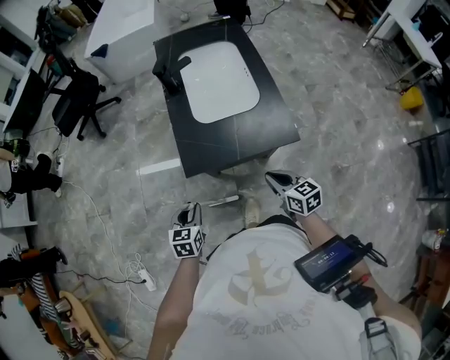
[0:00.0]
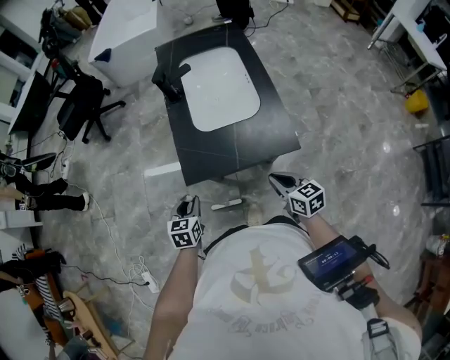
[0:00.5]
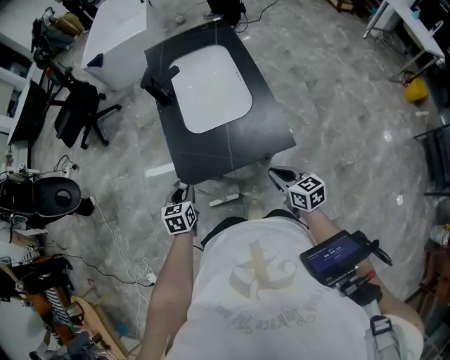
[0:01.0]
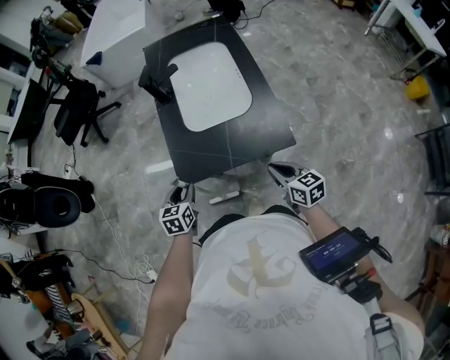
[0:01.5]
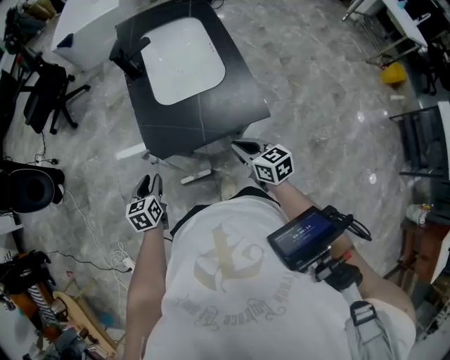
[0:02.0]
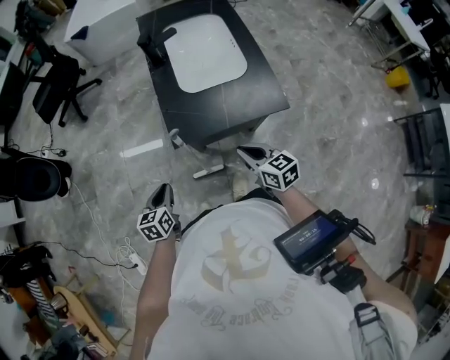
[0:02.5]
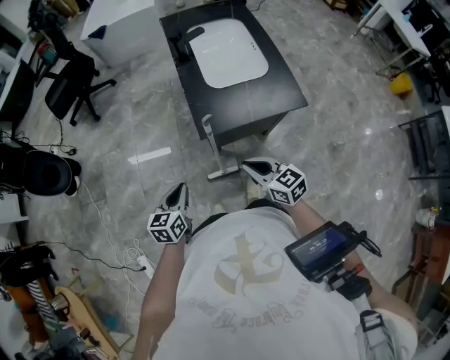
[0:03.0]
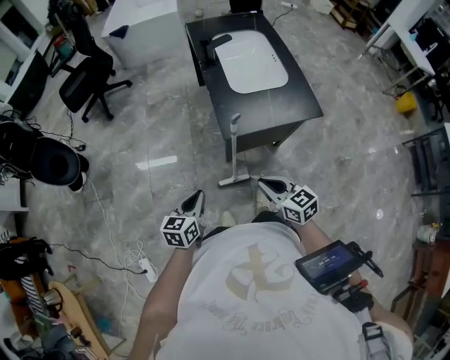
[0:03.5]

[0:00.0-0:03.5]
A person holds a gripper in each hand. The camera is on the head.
0:00.0 to 0:02.0: Both grippers travel together forward, roughly 5 cm.
0:02.0 to 0:03.5: The left gripper moves backward, to the left and upward, roughly 20 cm, rotates roughly 20 degrees, and closes. The right gripper heads to the left and backward, covering about 25 cm.

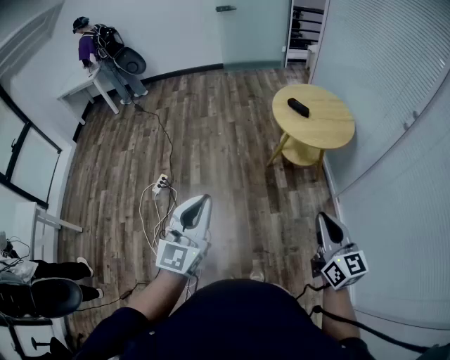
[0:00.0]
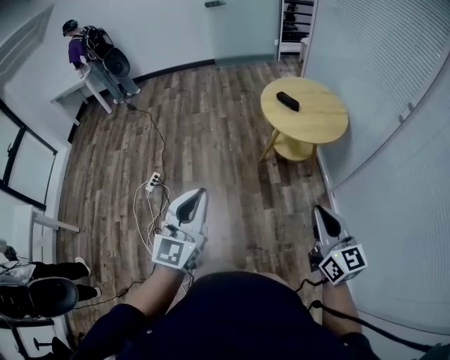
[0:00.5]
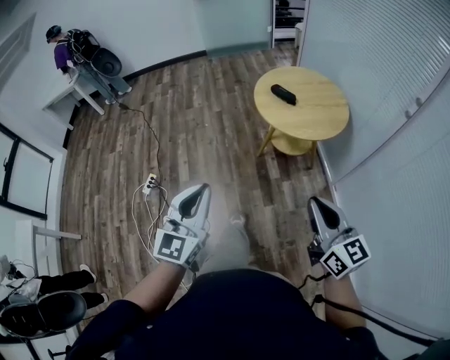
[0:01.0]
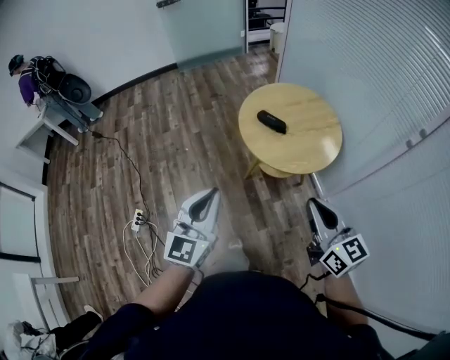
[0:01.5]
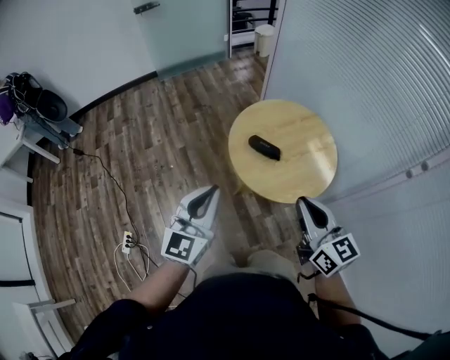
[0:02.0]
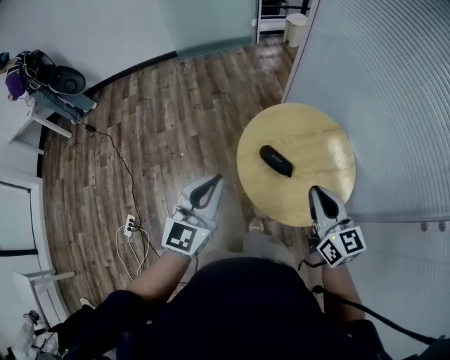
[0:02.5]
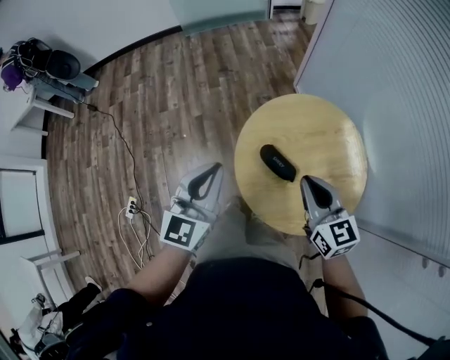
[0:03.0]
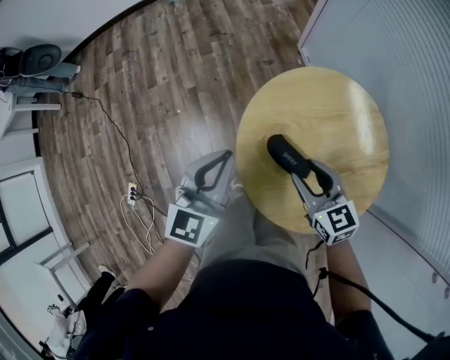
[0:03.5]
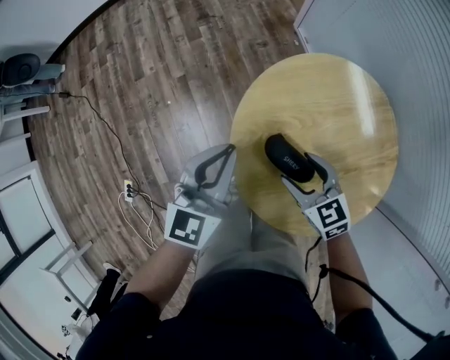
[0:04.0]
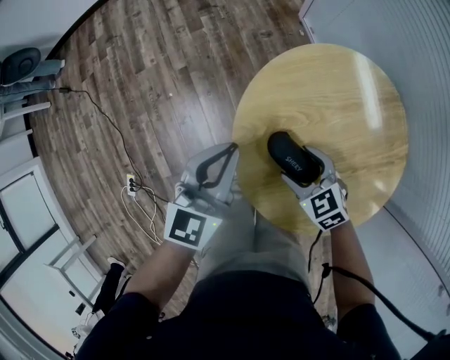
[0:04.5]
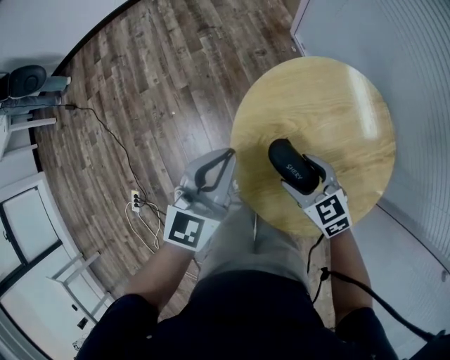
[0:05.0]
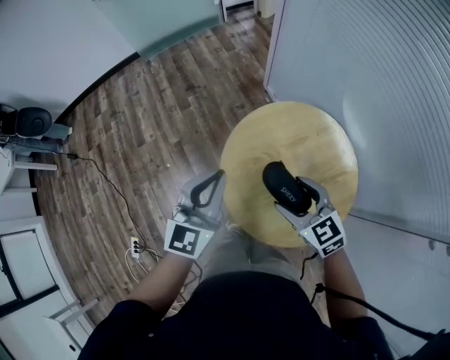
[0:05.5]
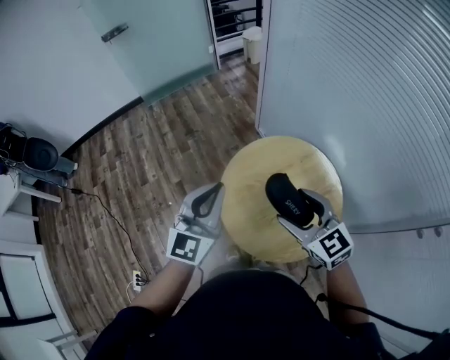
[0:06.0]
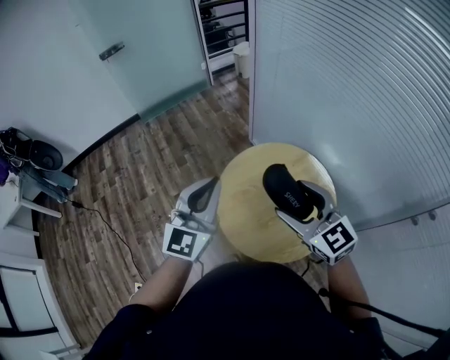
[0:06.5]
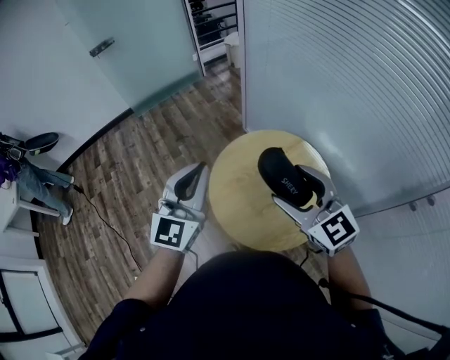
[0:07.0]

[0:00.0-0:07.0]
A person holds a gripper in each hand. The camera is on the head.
0:00.0 to 0:02.0: Both grippers are carried forward, approximately 50 cm. The left gripper changes its angle by approximately 20 degrees.
0:02.0 to 0:03.5: Both grippers move forward and downward, about 40 cm. The right gripper rotates some 30 degrees, and opens.
0:03.5 to 0:05.0: The right gripper goes about 10 cm downward, and opens its fingers.
0:05.0 to 0:07.0: The two grippers go approximately 35 cm upward. The left gripper swivels about 30 degrees; the right gripper changes its angle by approximately 40 degrees.

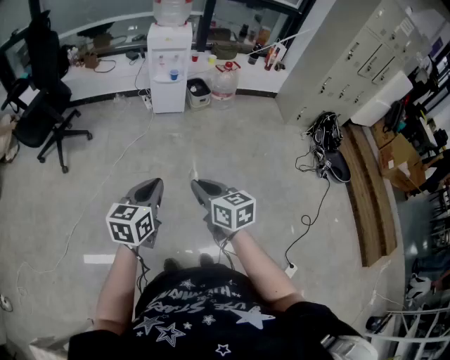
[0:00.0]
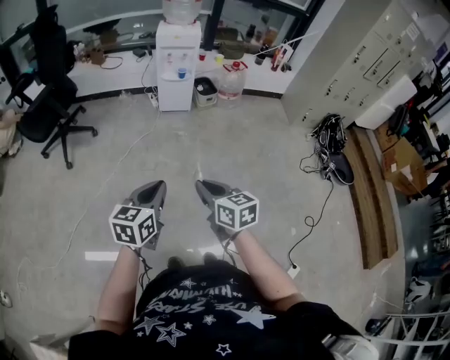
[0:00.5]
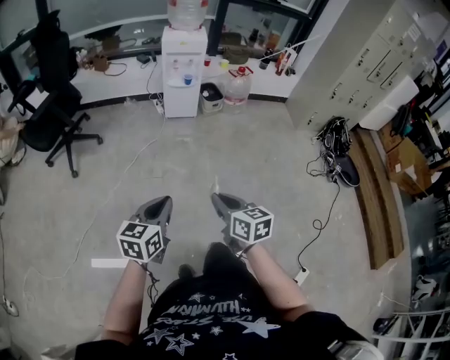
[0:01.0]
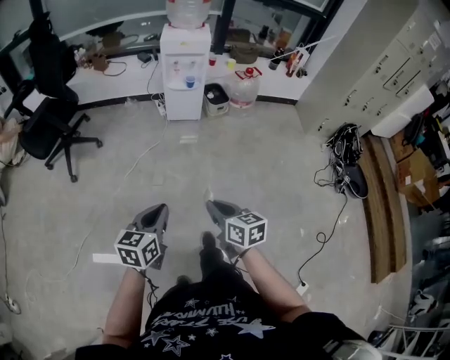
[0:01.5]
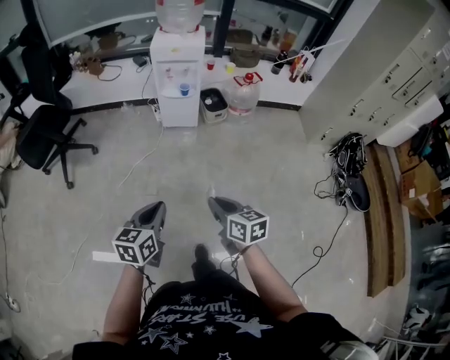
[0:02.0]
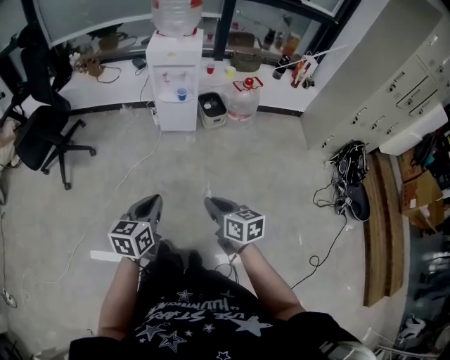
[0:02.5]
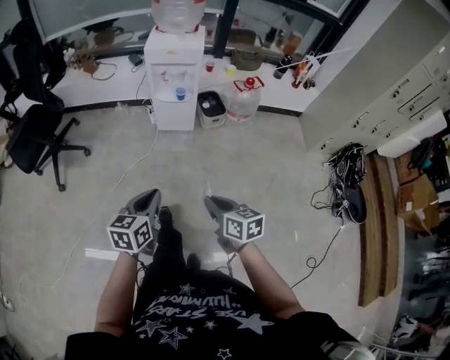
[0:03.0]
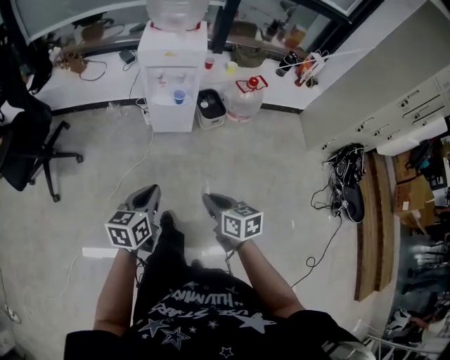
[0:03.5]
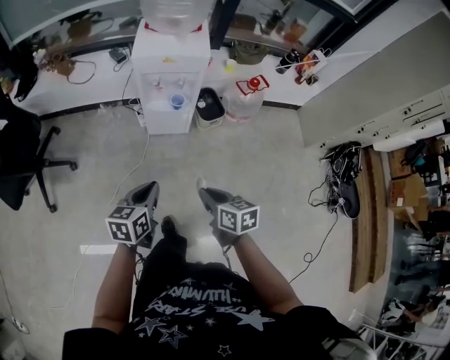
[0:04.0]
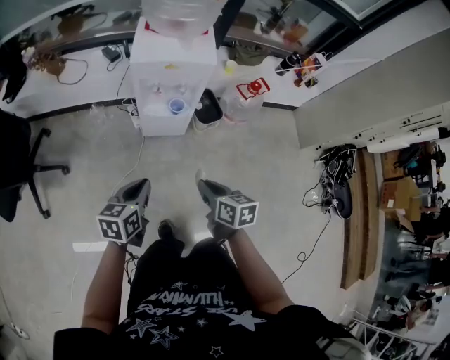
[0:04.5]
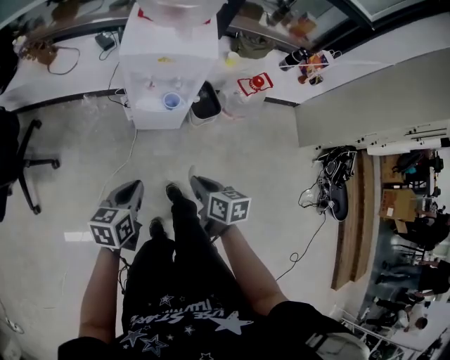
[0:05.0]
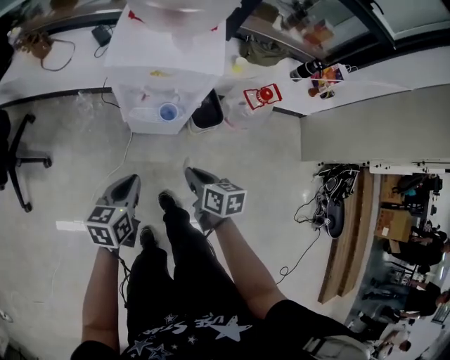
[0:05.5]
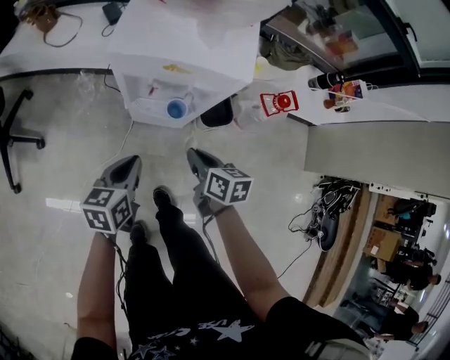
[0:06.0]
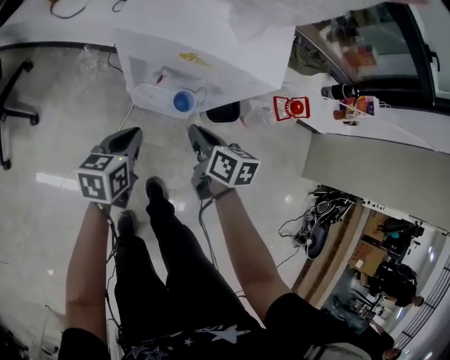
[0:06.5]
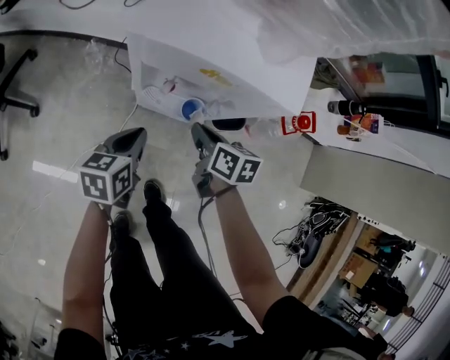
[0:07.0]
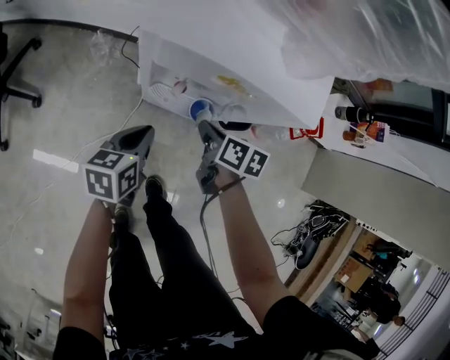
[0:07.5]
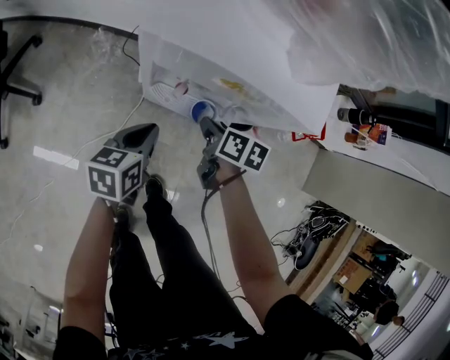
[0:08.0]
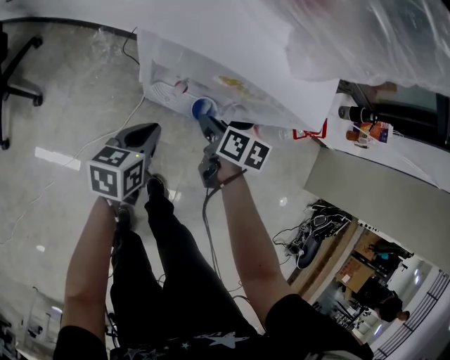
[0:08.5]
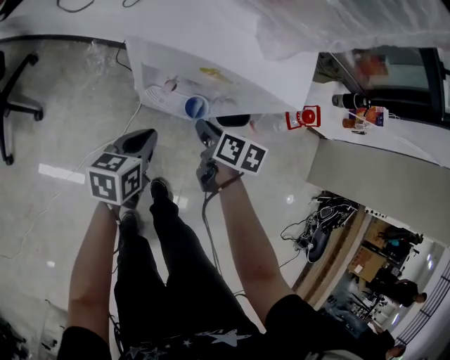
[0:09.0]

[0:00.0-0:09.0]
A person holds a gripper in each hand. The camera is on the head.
0:00.0 to 0:02.0: The grippers both shift forward by some 25 cm.
0:02.0 to 0:04.5: The two grippers travel together, forward, approximately 50 cm.
0:04.5 to 0:07.0: Both grippers travel together forward and downward, roughly 40 cm.
0:07.0 to 0:09.0: The right gripper opens up.

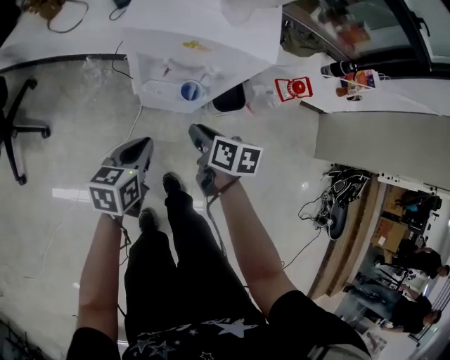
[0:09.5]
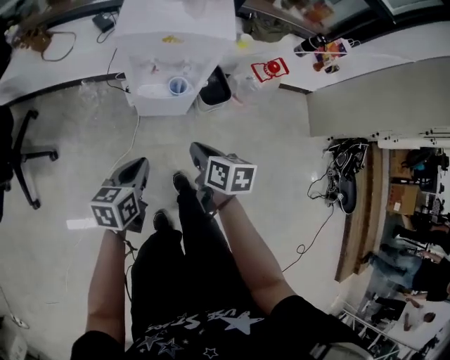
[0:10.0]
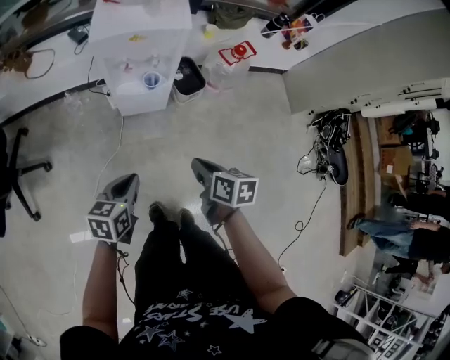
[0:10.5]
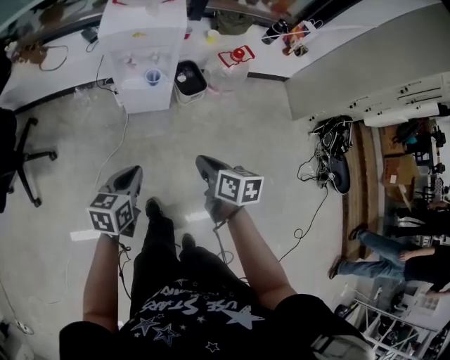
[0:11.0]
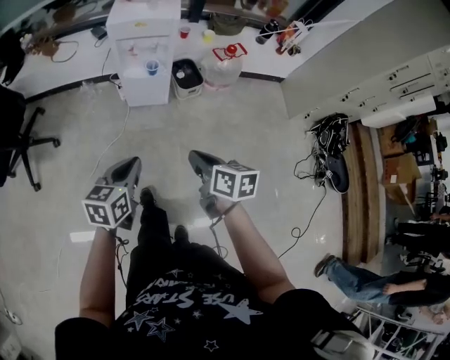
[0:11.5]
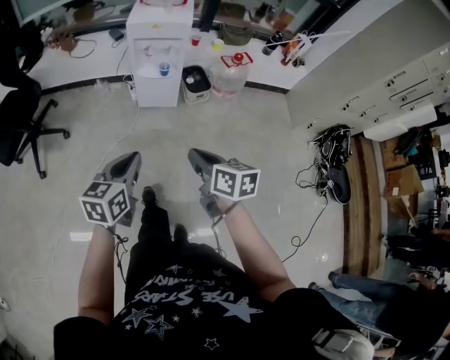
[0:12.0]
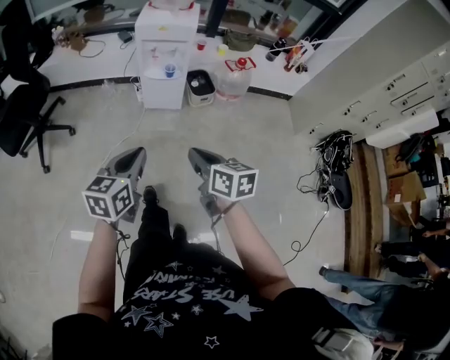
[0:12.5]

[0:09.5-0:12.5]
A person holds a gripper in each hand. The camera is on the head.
0:09.5 to 0:11.0: The two grippers go about 35 cm backward and upward.
0:11.0 to 0:12.5: The two grippers go some 25 cm backward and upward. The right gripper swivels approximately 20 degrees.

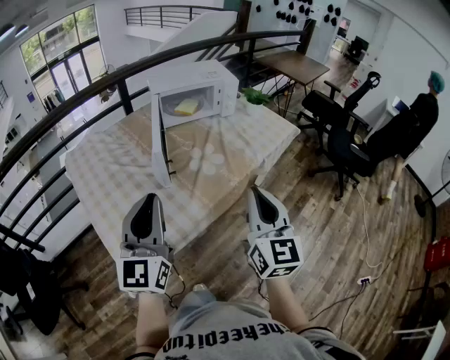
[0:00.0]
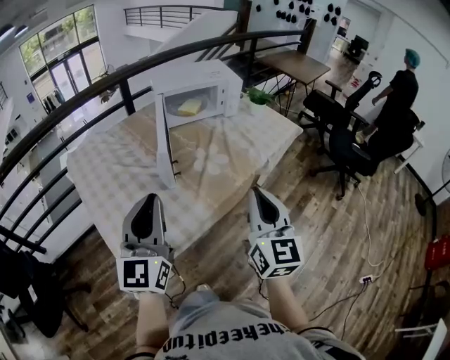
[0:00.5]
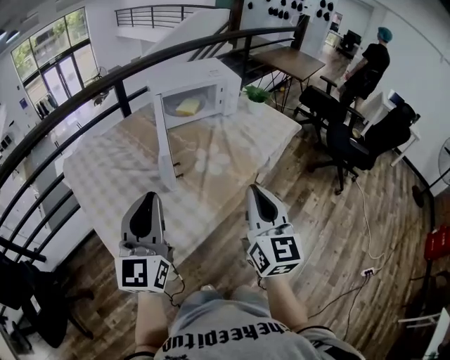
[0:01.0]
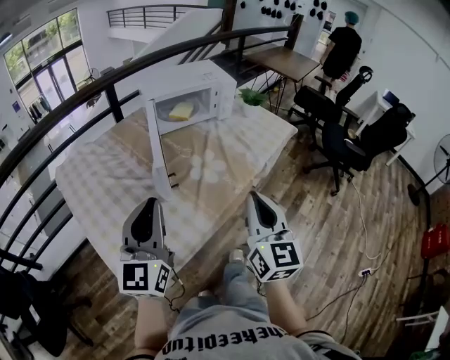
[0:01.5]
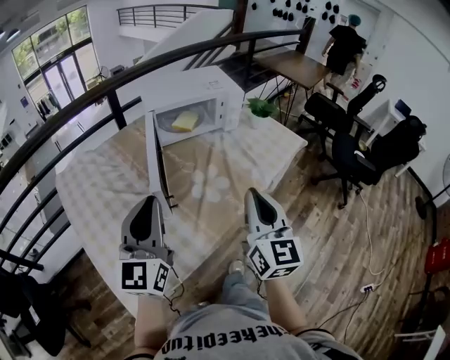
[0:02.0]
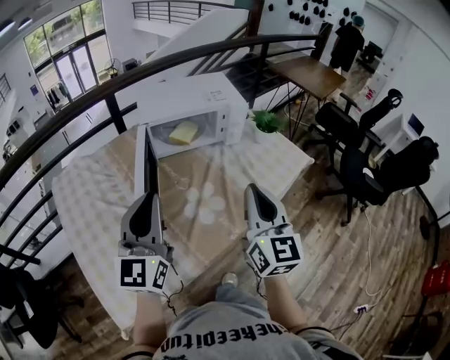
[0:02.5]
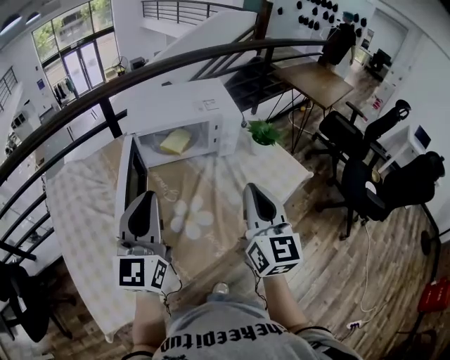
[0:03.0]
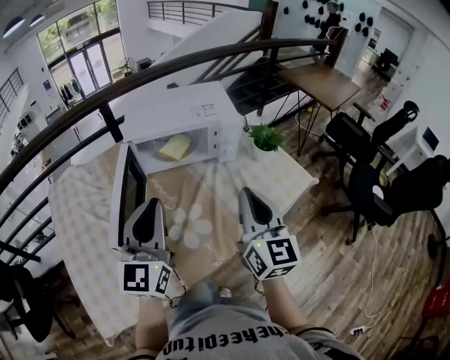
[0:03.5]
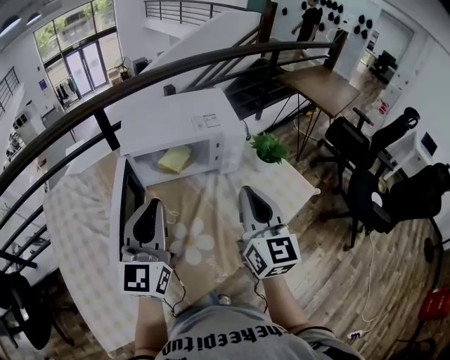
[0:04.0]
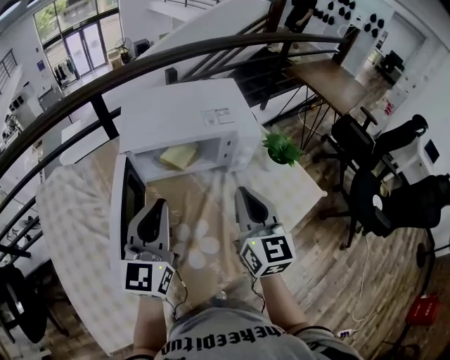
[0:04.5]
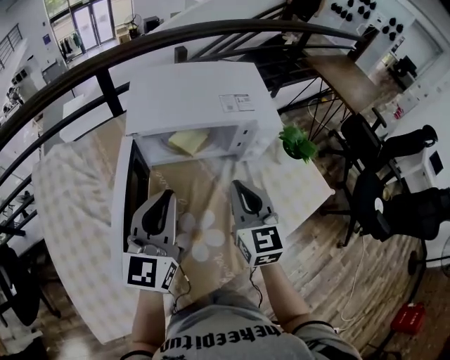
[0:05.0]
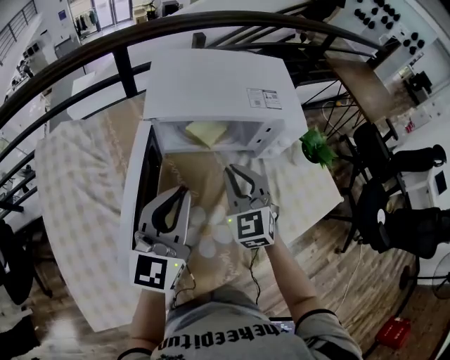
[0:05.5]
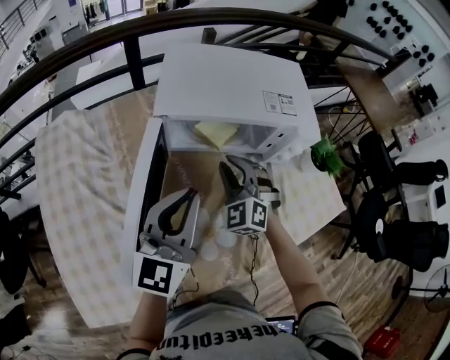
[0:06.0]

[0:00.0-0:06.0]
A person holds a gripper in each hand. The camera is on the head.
0:00.0 to 0:02.0: Both grippers travel together forward, roughly 15 cm.
0:02.0 to 0:04.0: The left gripper goes about 25 cm forward and to the right. Meanwhile the right gripper is displaced forward by some 25 cm.
0:04.0 to 0:06.0: The left gripper moves downward and forward, roughly 15 cm, while the right gripper goes about 30 cm downward, to the left and forward, twists about 60 degrees counterclockwise, seen from behind, and opens its fingers.
